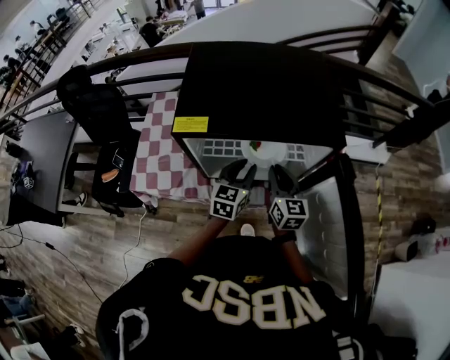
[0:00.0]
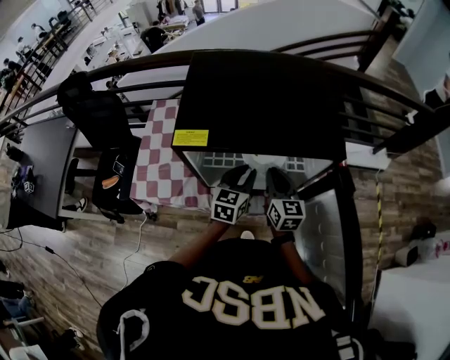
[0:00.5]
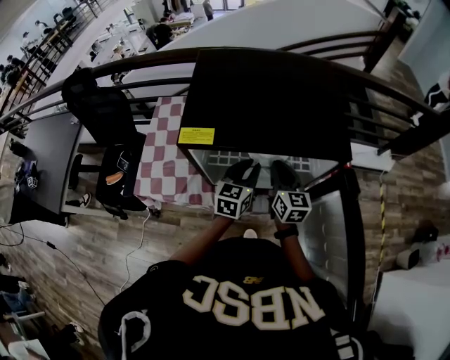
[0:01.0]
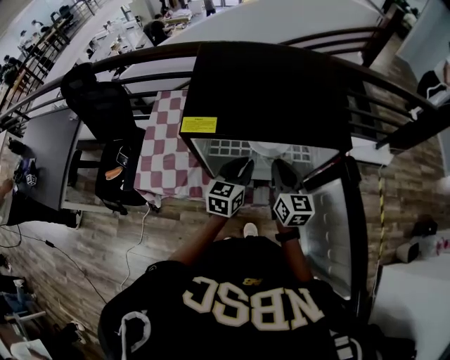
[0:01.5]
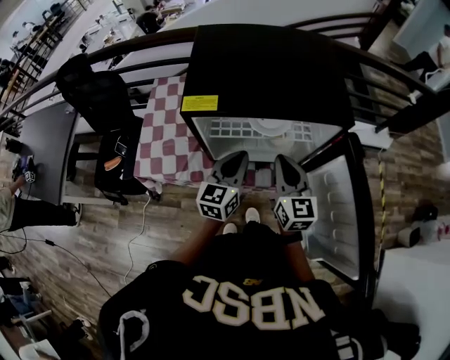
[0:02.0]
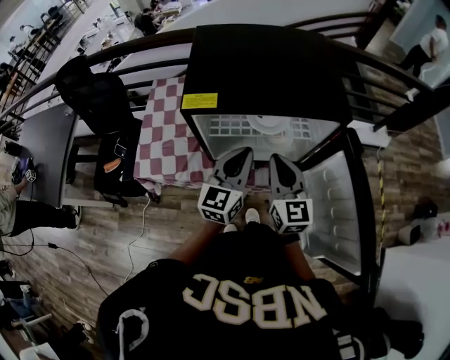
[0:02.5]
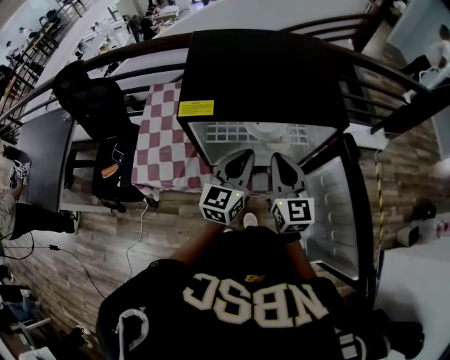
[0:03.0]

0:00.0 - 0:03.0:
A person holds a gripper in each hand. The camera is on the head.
0:00.0 - 0:01.5: The grippers make only small movements.
0:01.5 - 0:03.0: The left gripper heads upward, covering roughly 10 cm. Meanwhile the right gripper goes approximately 10 cm upward and backward.

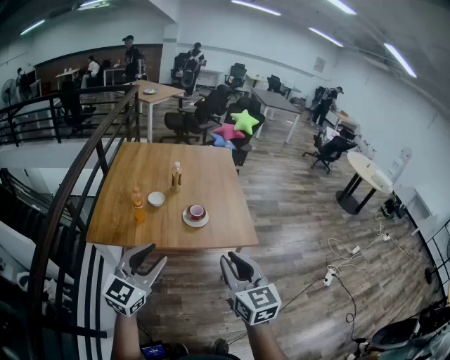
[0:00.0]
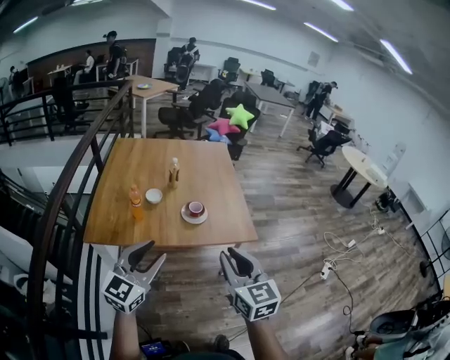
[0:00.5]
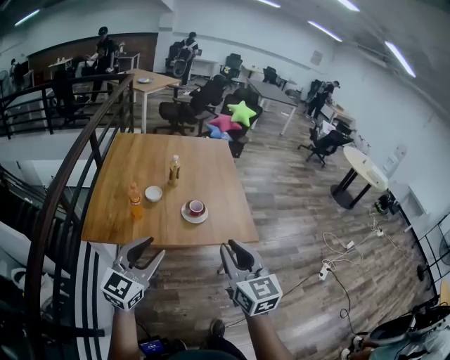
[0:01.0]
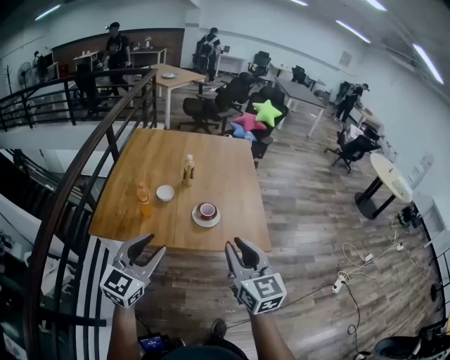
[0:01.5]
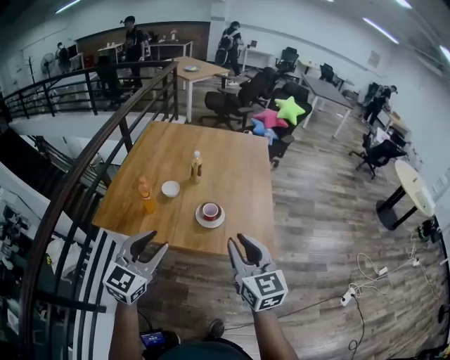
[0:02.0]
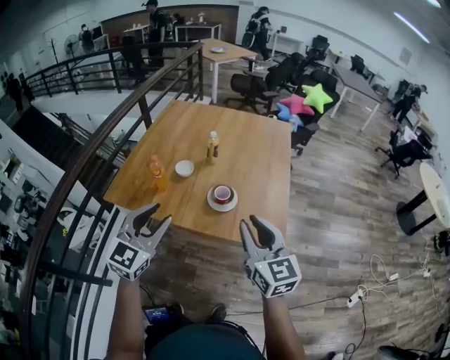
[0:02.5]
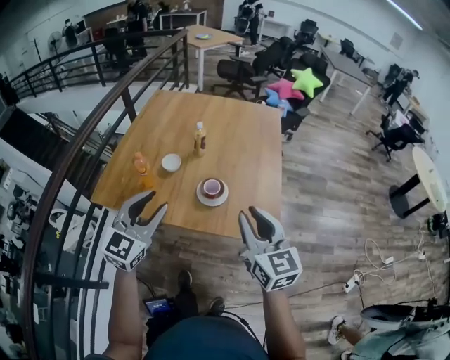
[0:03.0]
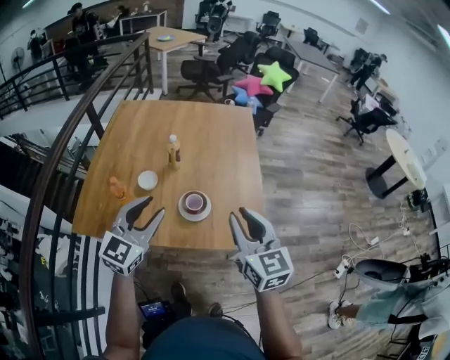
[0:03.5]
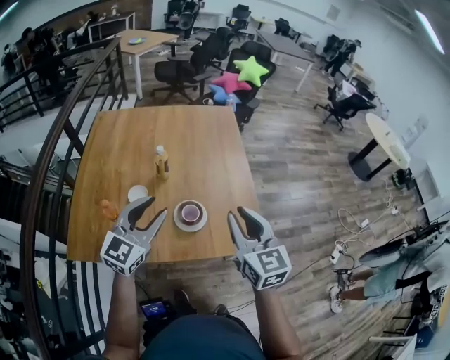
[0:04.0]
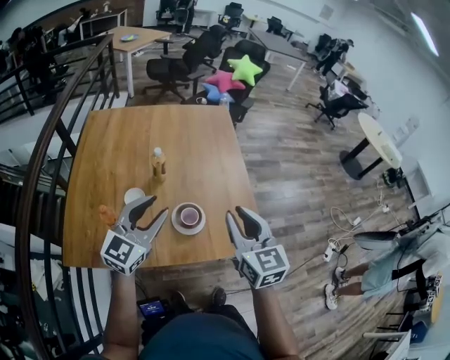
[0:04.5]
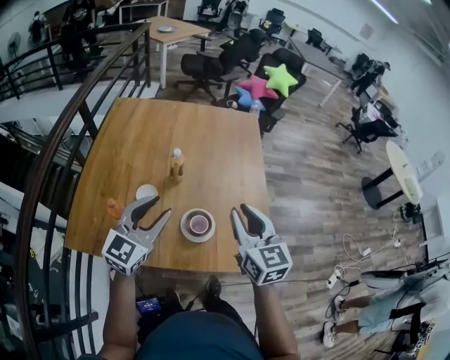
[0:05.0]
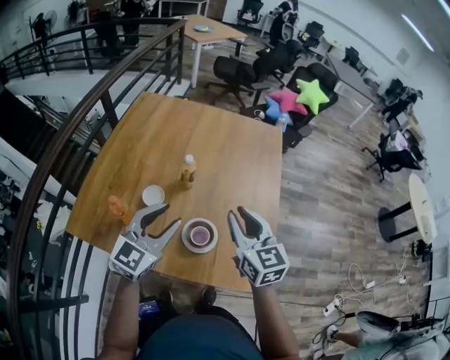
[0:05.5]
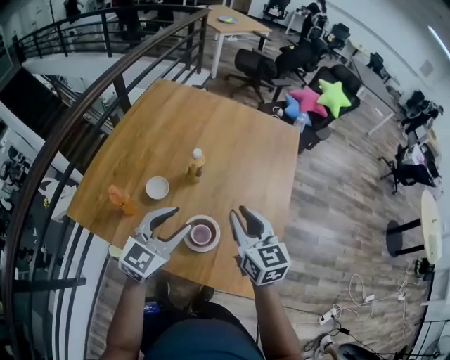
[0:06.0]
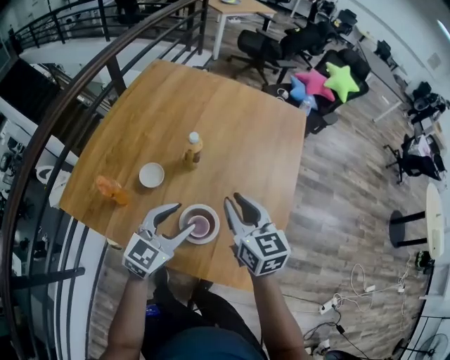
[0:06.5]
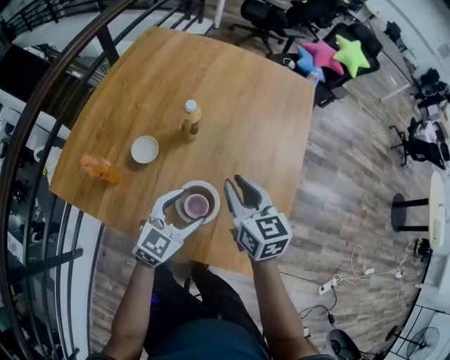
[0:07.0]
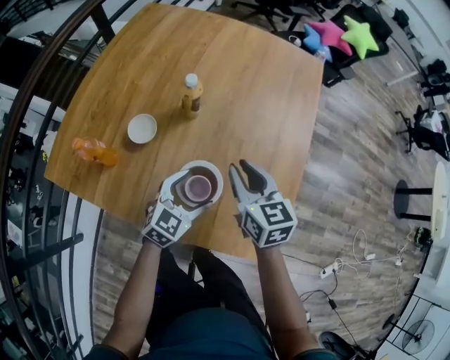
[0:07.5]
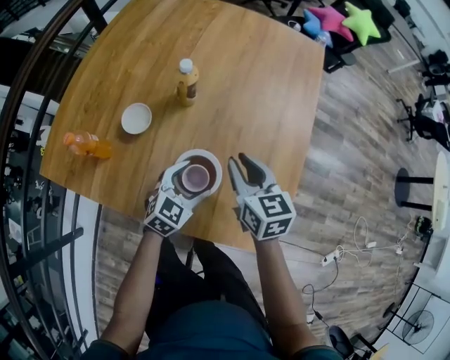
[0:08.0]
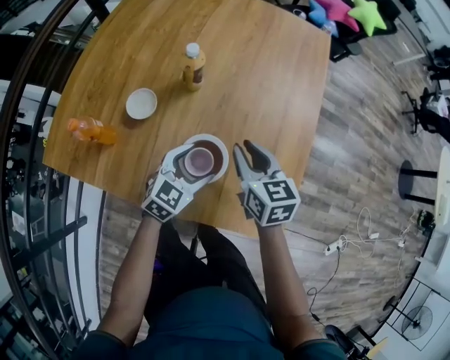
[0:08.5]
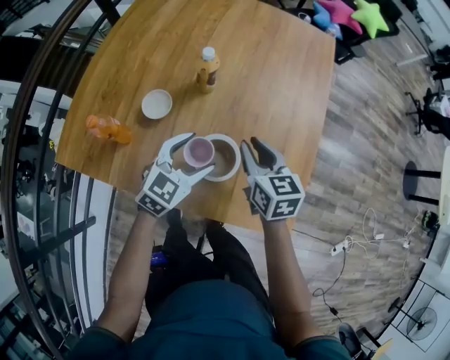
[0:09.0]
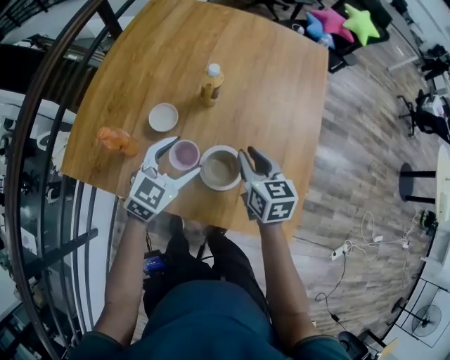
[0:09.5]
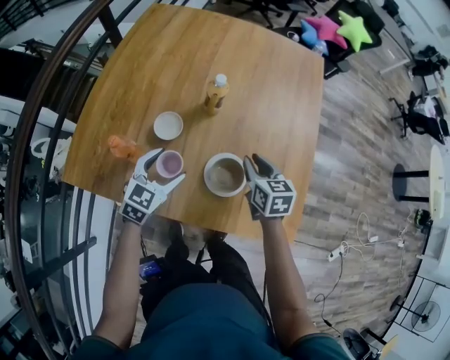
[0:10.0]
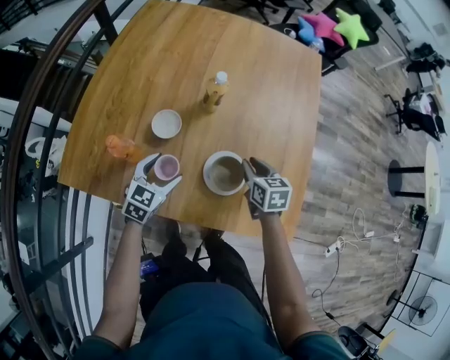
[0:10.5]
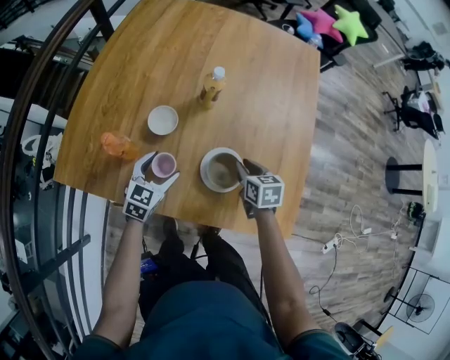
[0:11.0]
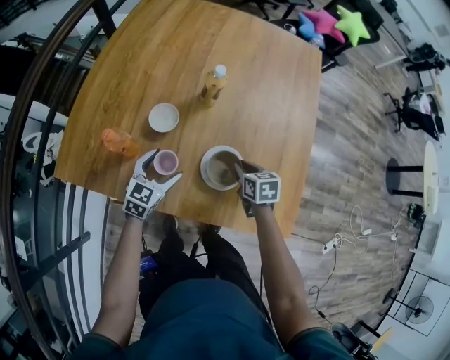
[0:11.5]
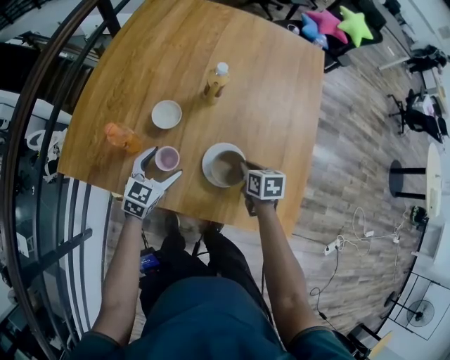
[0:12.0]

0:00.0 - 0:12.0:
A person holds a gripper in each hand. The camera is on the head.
0:00.0 - 0:02.0: Both grippers move forward, about 15 cm.
0:02.0 - 0:04.0: The grippers both shift forward by roughly 20 cm.
0:04.0 - 0:06.0: The left gripper goes some 10 cm forward and downward, and rotates some 20 degrees. The right gripper heads forward, covering some 20 cm, and rotates about 30 degrees.
0:06.0 - 0:08.0: The right gripper is displaced downward by some 15 cm; the left gripper shifts approximately 25 cm downward, turns by about 20 degrees, and opens up.
0:08.0 - 0:10.0: The left gripper heads to the left and upward, covering approximately 20 cm, while the right gripper ends up approximately 5 cm from where it was.
0:10.0 - 0:12.0: The left gripper is displaced downward by roughly 5 cm; the right gripper travels downward by approximately 10 cm.

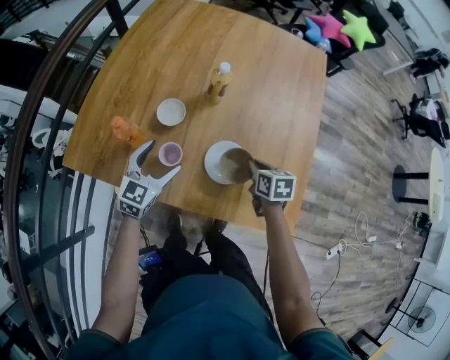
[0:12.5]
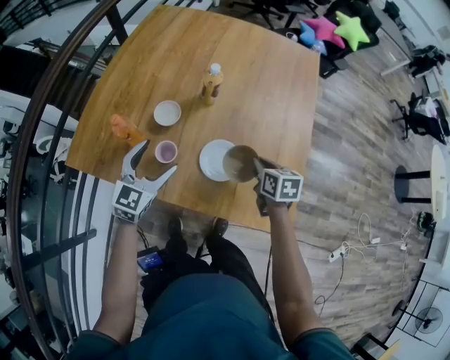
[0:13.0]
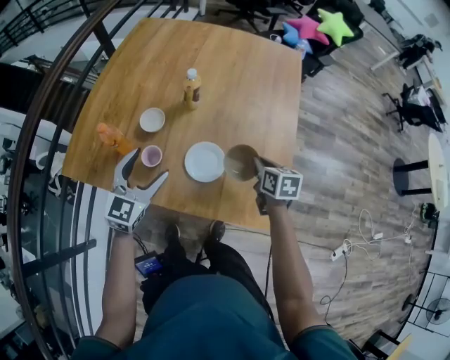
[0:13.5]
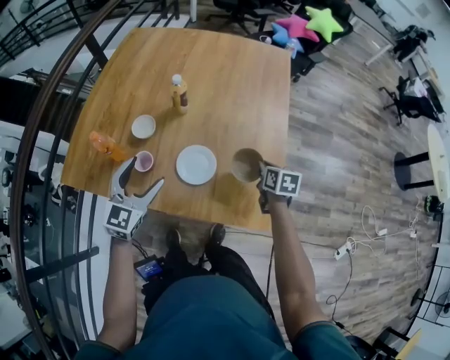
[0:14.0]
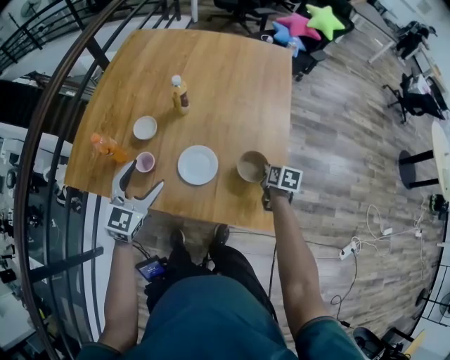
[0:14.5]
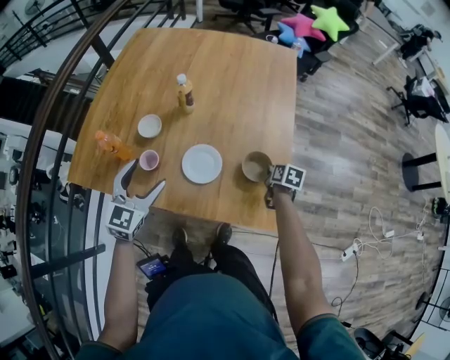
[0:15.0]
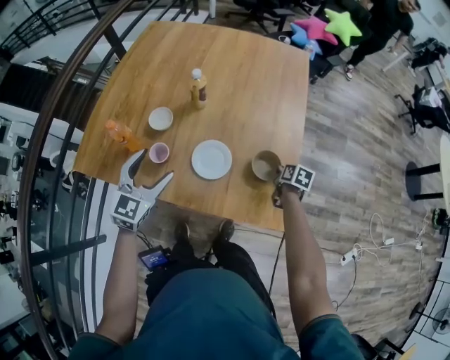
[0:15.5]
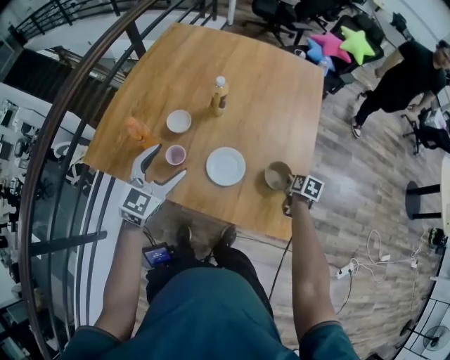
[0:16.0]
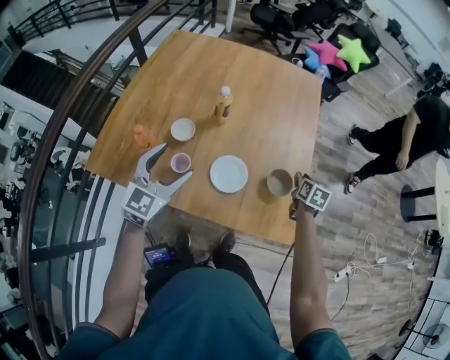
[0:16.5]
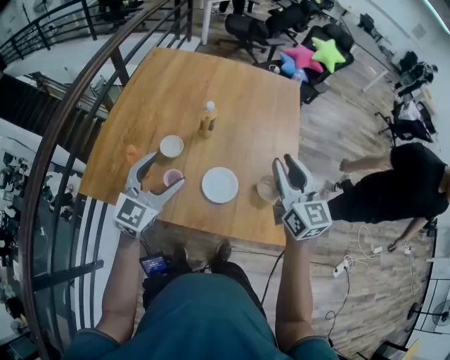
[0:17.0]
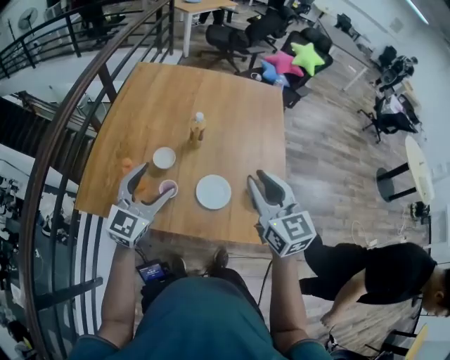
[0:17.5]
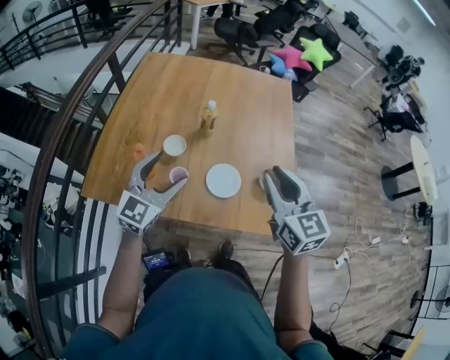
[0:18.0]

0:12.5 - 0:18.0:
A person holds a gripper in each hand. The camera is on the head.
0:12.5 - 0:14.5: The right gripper travels to the right by about 20 cm, while the left gripper is displaced upward, to the right and backward by approximately 15 cm.
0:14.5 - 0:16.0: The grippers make only small movements.
0:16.0 - 0:18.0: The left gripper goes some 10 cm upward; the right gripper shifts approximately 40 cm upward and to the left, and tips its fingers upward by some 40 degrees.

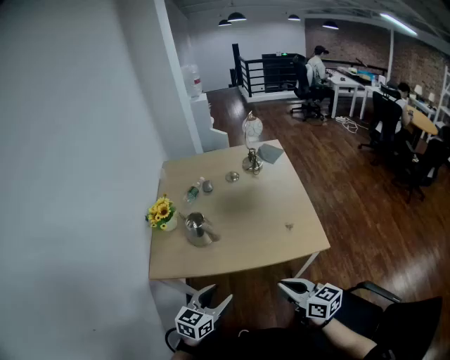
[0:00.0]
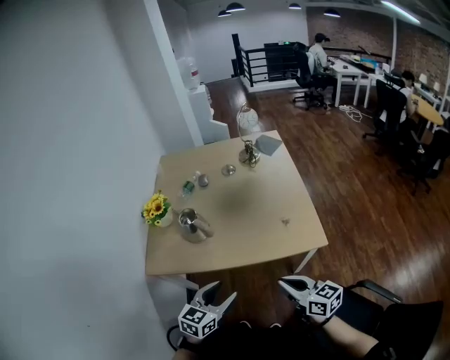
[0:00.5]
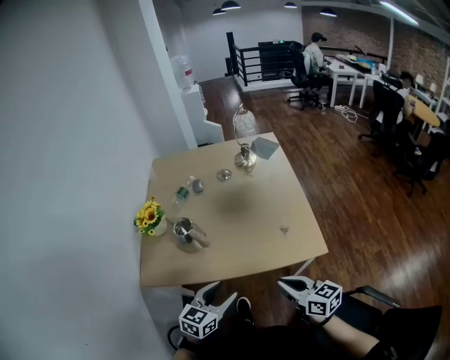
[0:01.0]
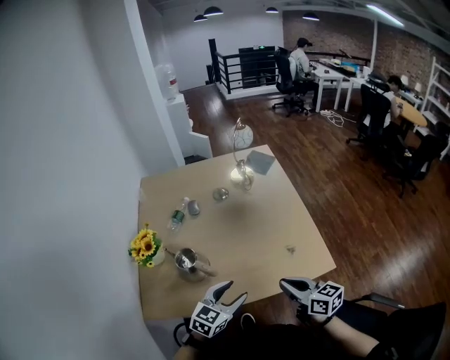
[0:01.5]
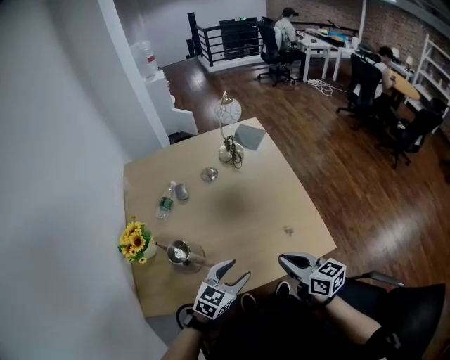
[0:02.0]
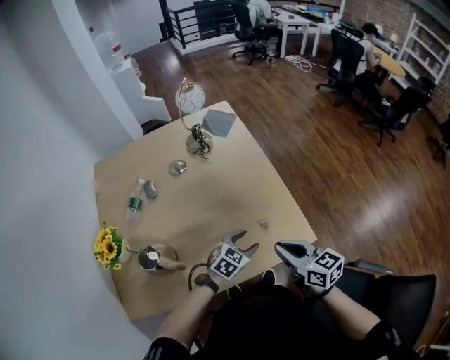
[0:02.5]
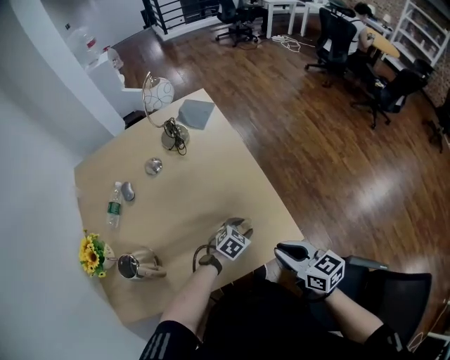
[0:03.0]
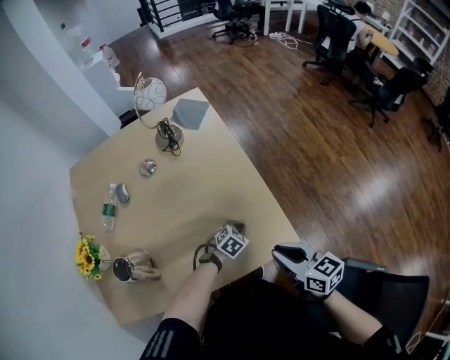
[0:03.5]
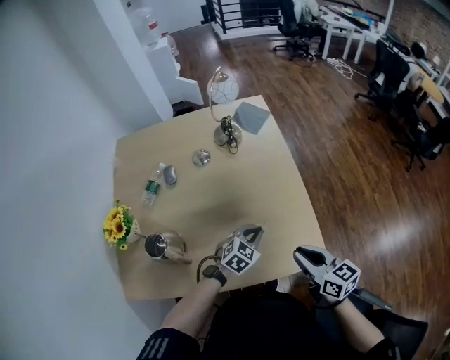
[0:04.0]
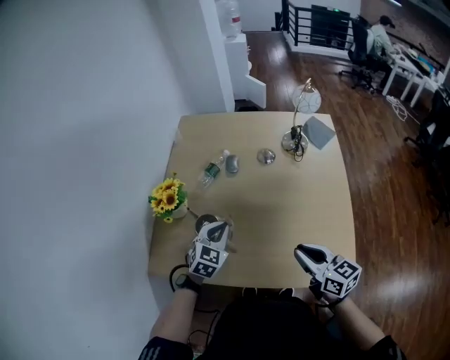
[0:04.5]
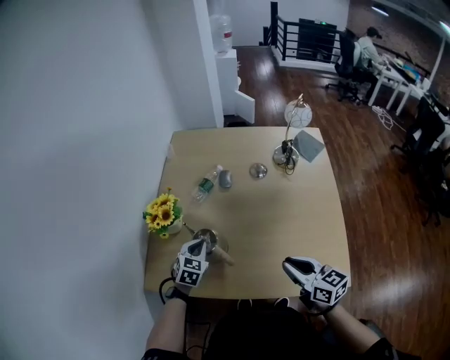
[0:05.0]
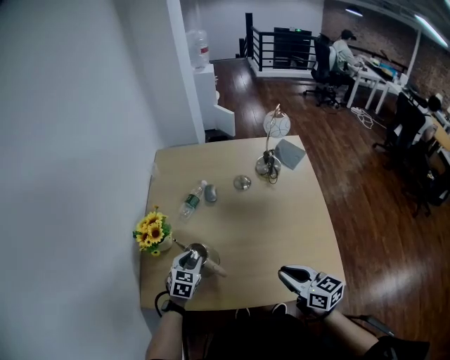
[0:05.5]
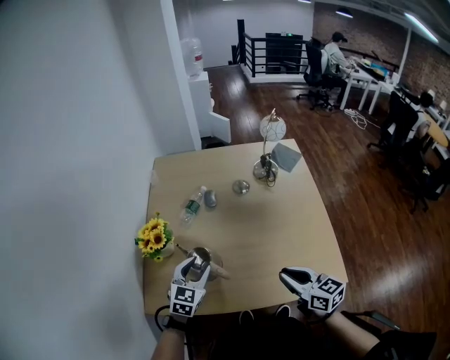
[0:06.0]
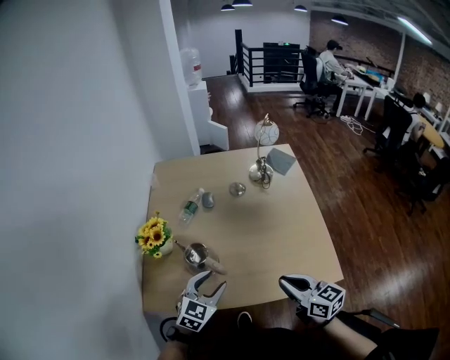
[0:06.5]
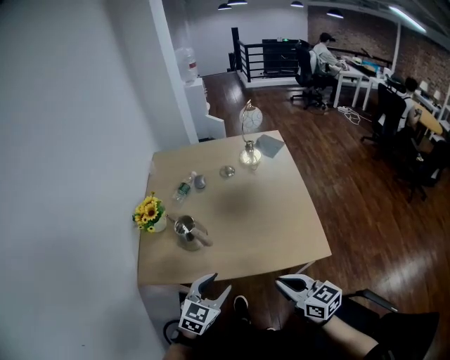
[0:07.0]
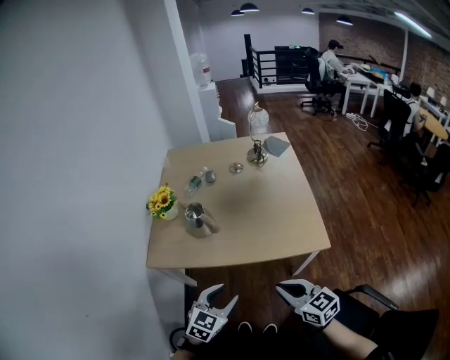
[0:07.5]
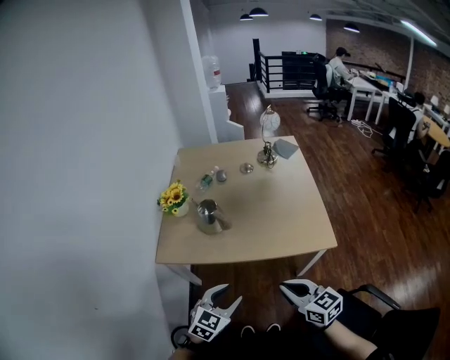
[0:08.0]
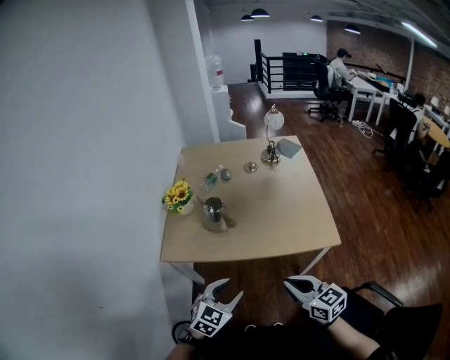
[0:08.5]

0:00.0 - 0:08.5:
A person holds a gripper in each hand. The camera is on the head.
0:00.0 - 0:02.0: Both grippers move forward, approximately 25 cm. The left gripper changes its angle by about 20 degrees.
0:02.0 - 0:04.0: The right gripper shifts roughly 15 cm to the right and forward. Meanwhile the left gripper shifts some 25 cm forward, to the right and downward, and closes.
0:04.0 - 0:06.5: The left gripper goes up and down, approximately 10 cm each way, reversing 2 times, changes its angle by some 20 degrees, and opens its fingers. Meanwhile the right gripper changes place by about 20 cm.
0:06.5 - 0:08.5: Both grippers travel together backward, approximately 30 cm.
